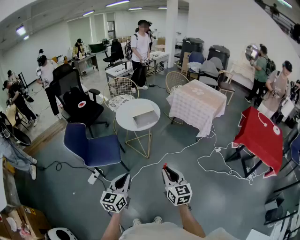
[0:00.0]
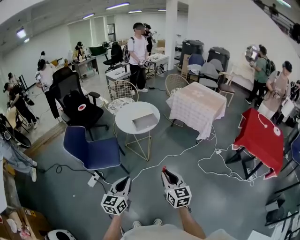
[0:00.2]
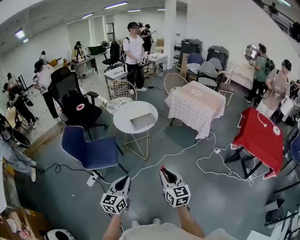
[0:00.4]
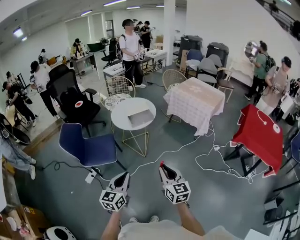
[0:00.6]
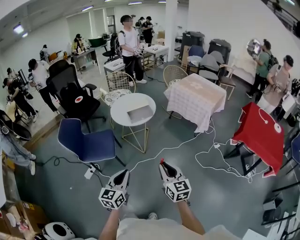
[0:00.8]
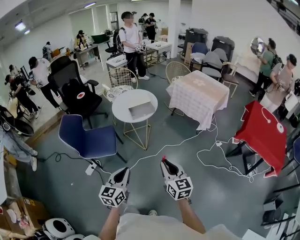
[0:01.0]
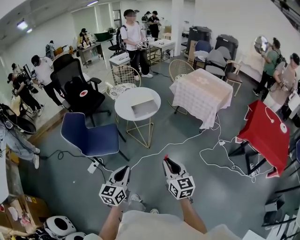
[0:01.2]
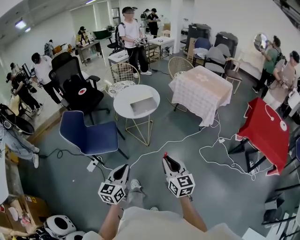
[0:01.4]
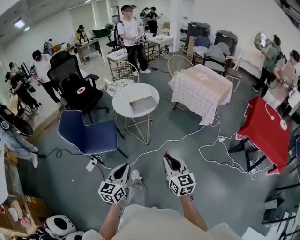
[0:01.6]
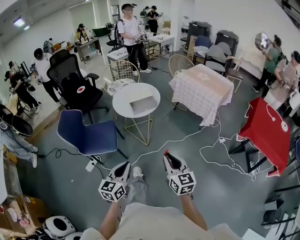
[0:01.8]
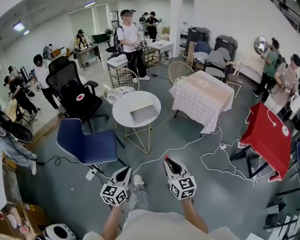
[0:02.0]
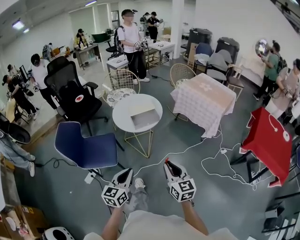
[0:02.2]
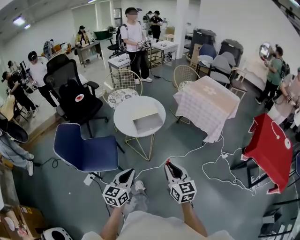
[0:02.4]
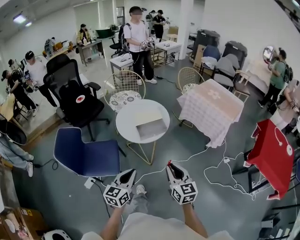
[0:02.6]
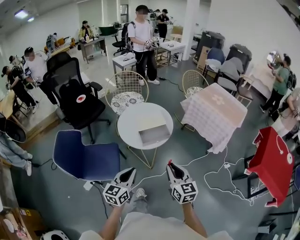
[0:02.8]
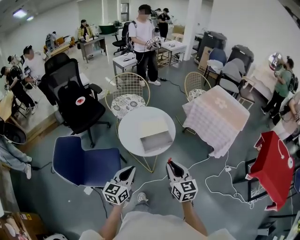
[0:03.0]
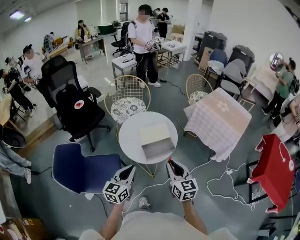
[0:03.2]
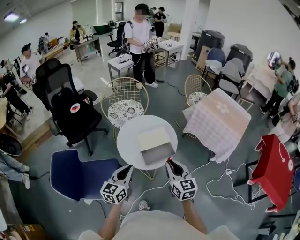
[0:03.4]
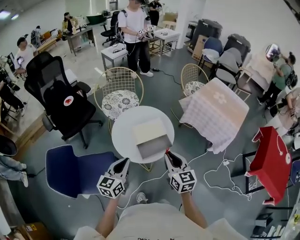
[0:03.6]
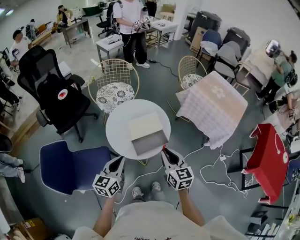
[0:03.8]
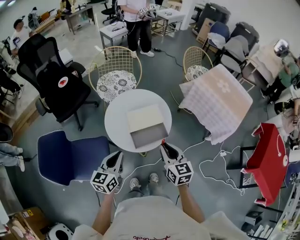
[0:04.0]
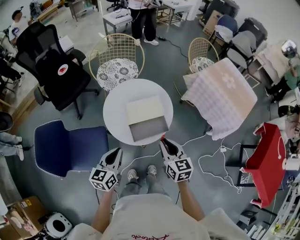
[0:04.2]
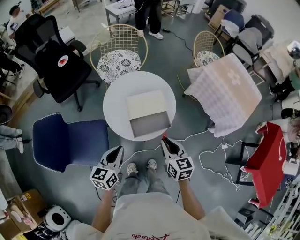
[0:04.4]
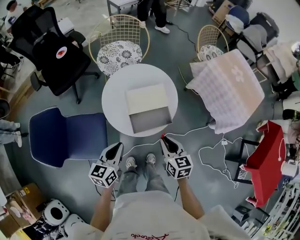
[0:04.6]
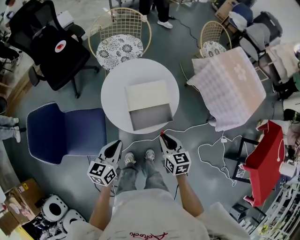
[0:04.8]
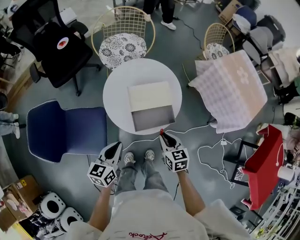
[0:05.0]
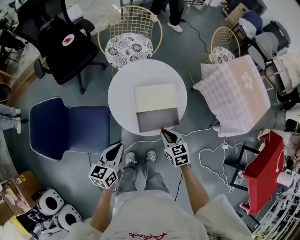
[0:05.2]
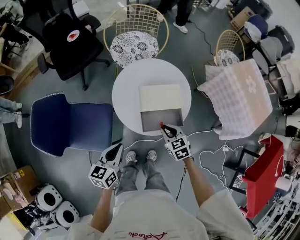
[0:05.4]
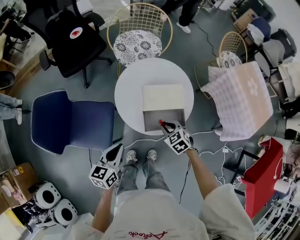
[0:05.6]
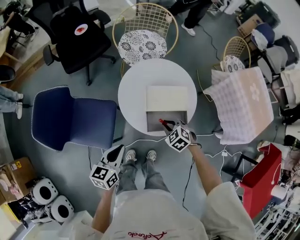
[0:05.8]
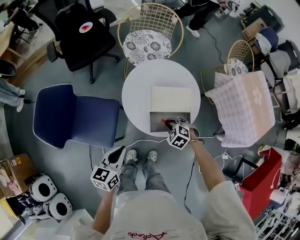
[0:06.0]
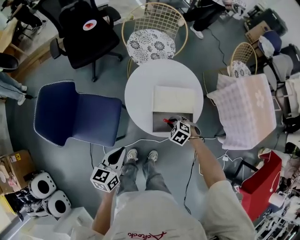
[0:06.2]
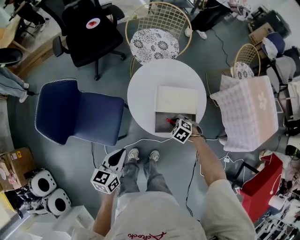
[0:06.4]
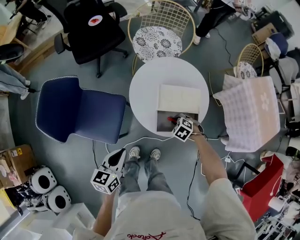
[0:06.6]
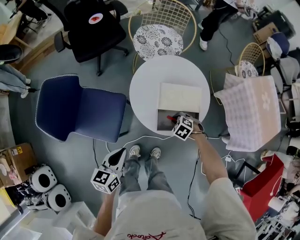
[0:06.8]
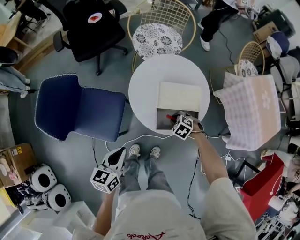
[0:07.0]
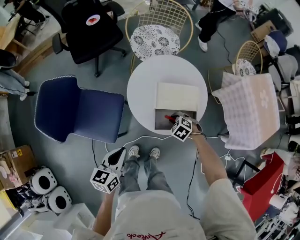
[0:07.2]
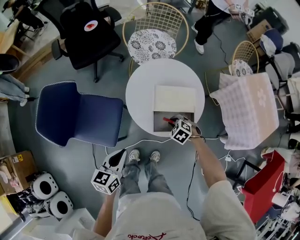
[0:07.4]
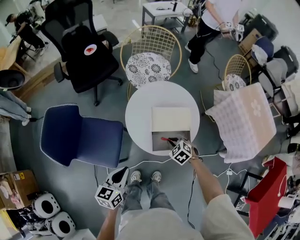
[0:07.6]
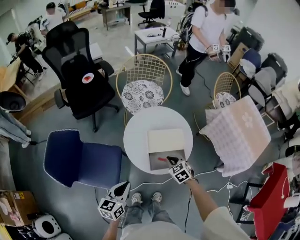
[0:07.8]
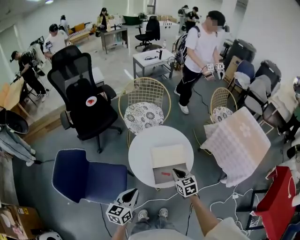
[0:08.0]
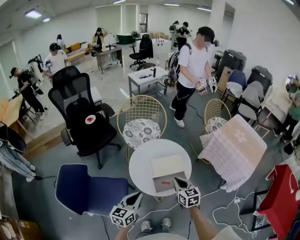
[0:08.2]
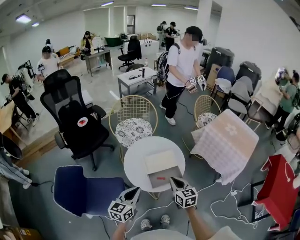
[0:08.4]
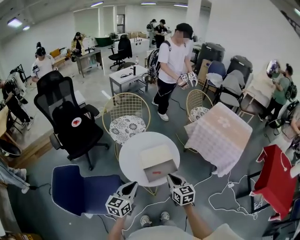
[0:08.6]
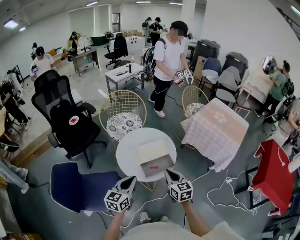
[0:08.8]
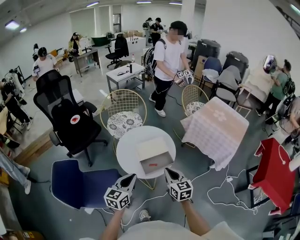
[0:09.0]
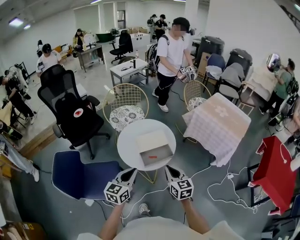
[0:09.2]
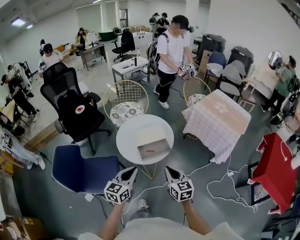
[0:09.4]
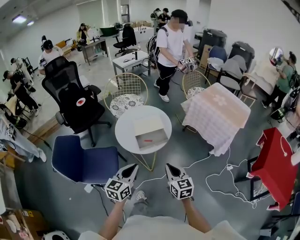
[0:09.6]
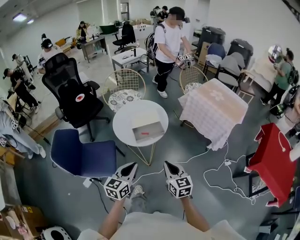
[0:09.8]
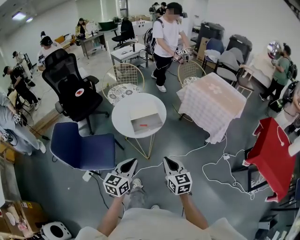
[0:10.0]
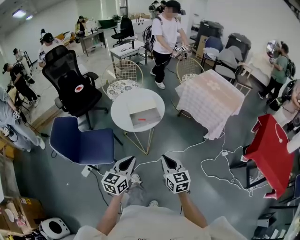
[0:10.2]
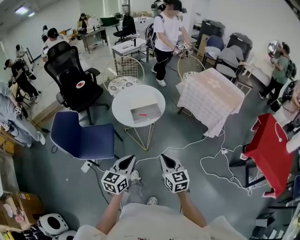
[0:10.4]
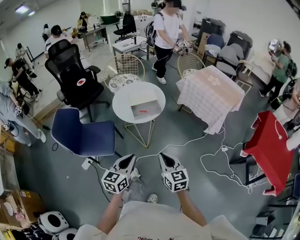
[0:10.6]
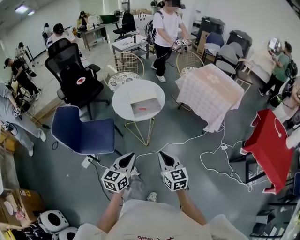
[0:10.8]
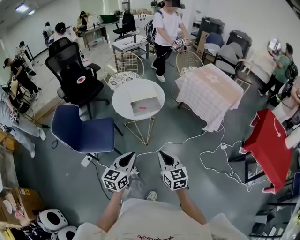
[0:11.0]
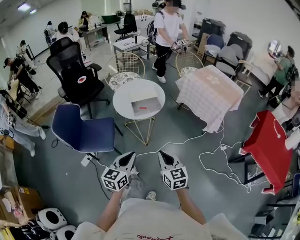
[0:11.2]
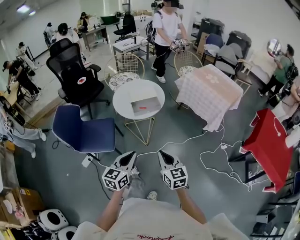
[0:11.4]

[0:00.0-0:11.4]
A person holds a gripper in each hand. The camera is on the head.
0.0 to 1.4 s: The two grippers go approximately 5 cm to the right.
1.4 to 2.8 s: The two grippers go about 30 cm forward.
2.8 to 4.2 s: Both grippers travel together forward, about 20 cm.
4.2 to 5.6 s: The left gripper is displaced downward by about 5 cm. Meanwhile the right gripper heads downward, covering about 20 cm, and tilts its fingers some 30 degrees downward.
5.6 to 7.2 s: The right gripper is displaced downward by approximately 10 cm, and swivels some 30 degrees.
7.2 to 8.6 s: The right gripper goes some 25 cm upward, and tilts its fingers approximately 50 degrees upward; the left gripper is displaced upward by approximately 10 cm, and changes its angle by roughly 30 degrees.
8.6 to 10.0 s: Both grippers travel together backward and to the right, roughly 30 cm.
10.0 to 11.4 s: Both grippers move backward, about 10 cm.

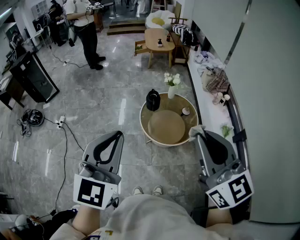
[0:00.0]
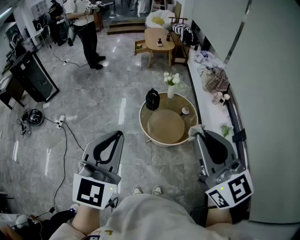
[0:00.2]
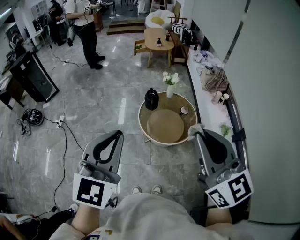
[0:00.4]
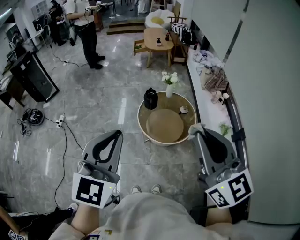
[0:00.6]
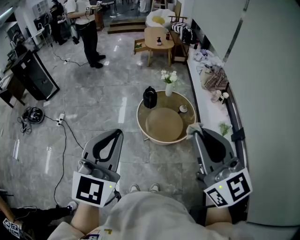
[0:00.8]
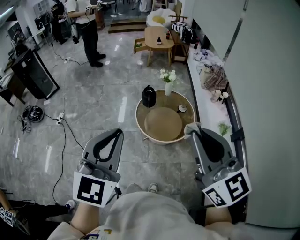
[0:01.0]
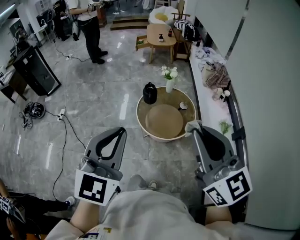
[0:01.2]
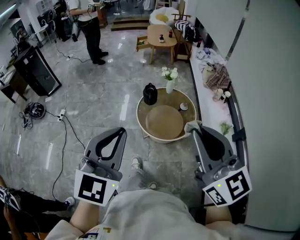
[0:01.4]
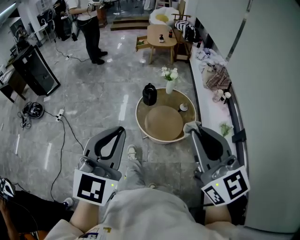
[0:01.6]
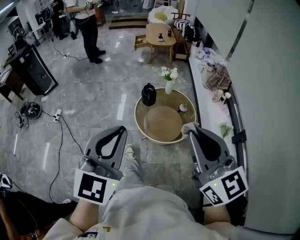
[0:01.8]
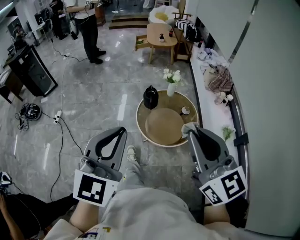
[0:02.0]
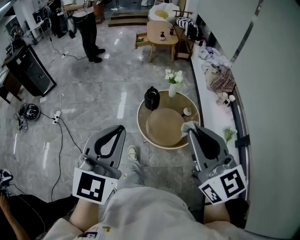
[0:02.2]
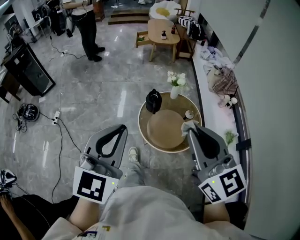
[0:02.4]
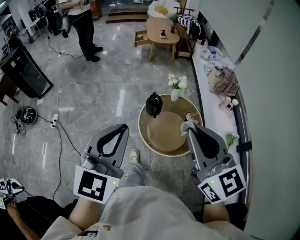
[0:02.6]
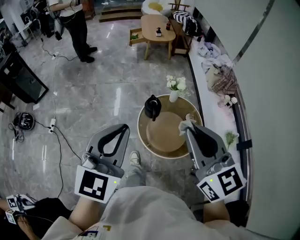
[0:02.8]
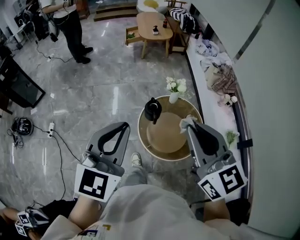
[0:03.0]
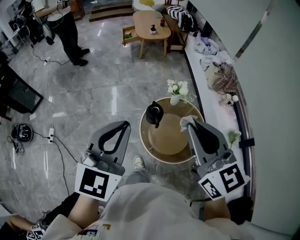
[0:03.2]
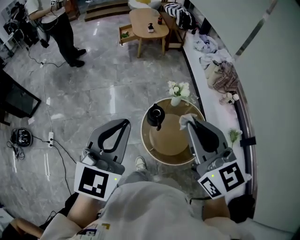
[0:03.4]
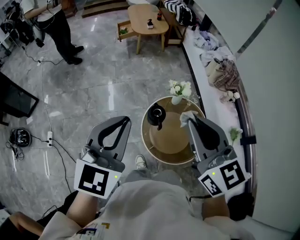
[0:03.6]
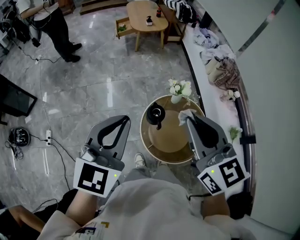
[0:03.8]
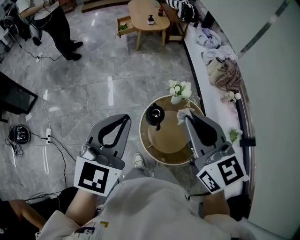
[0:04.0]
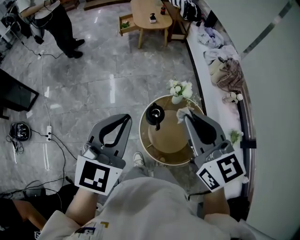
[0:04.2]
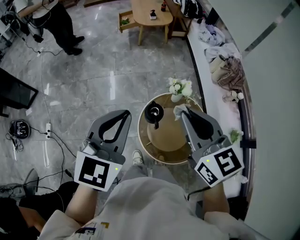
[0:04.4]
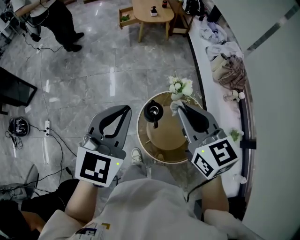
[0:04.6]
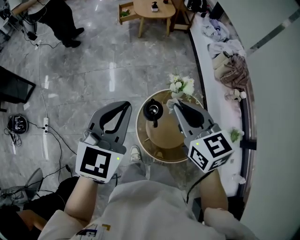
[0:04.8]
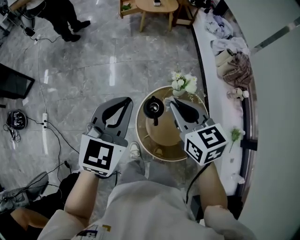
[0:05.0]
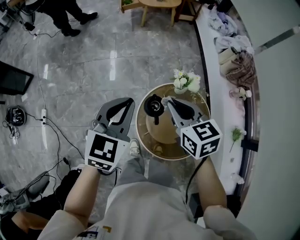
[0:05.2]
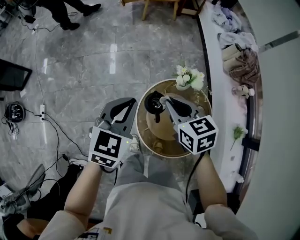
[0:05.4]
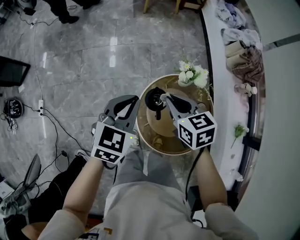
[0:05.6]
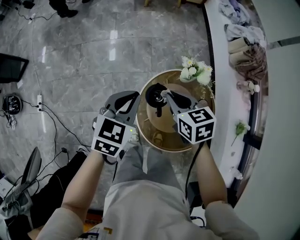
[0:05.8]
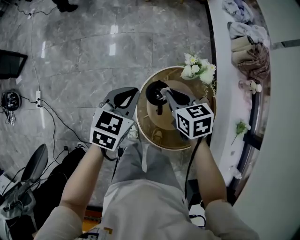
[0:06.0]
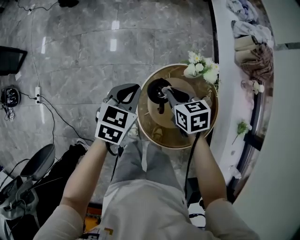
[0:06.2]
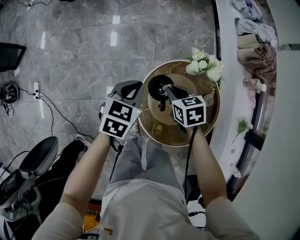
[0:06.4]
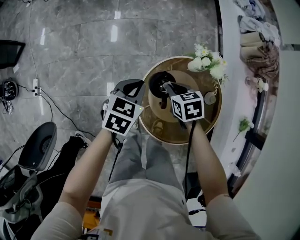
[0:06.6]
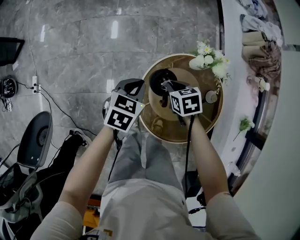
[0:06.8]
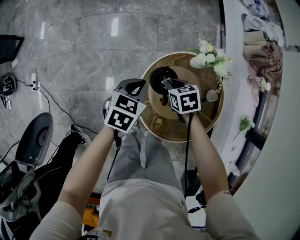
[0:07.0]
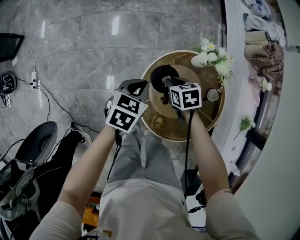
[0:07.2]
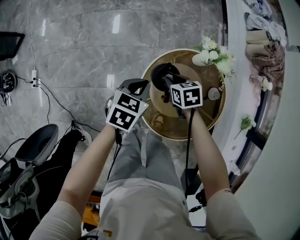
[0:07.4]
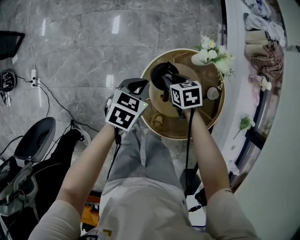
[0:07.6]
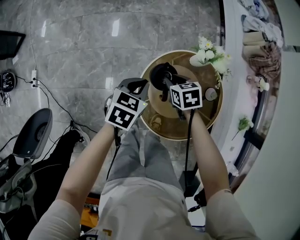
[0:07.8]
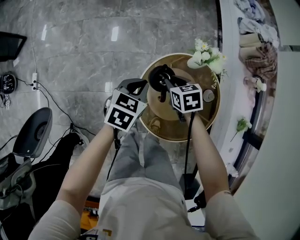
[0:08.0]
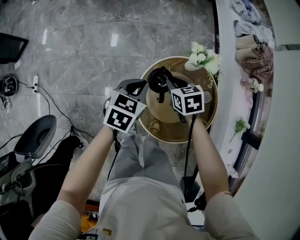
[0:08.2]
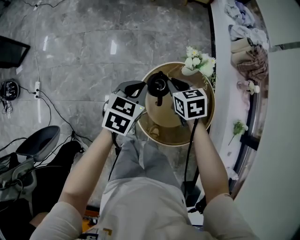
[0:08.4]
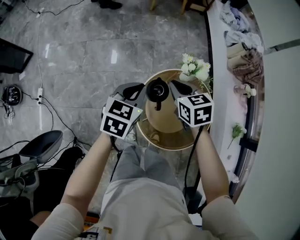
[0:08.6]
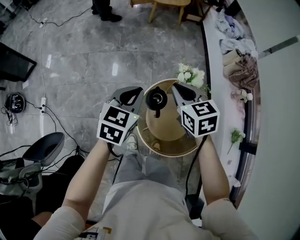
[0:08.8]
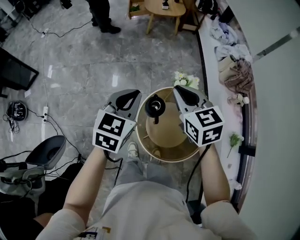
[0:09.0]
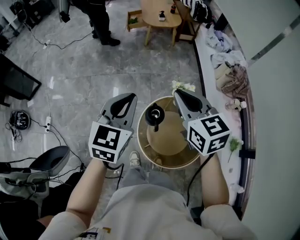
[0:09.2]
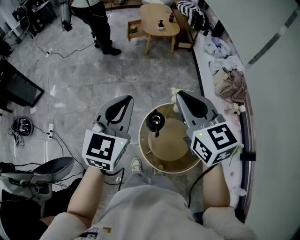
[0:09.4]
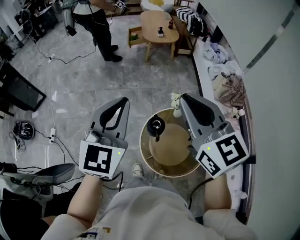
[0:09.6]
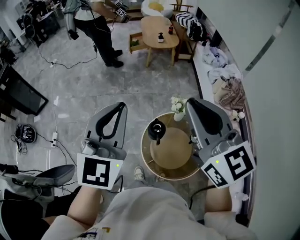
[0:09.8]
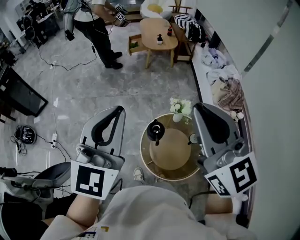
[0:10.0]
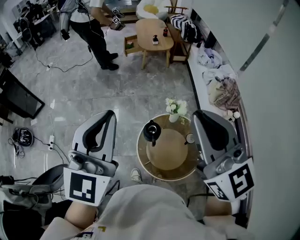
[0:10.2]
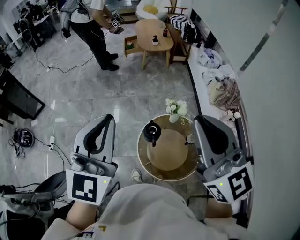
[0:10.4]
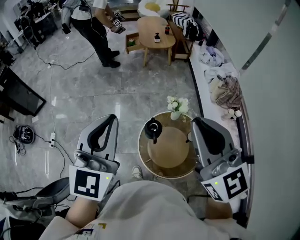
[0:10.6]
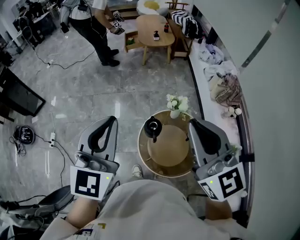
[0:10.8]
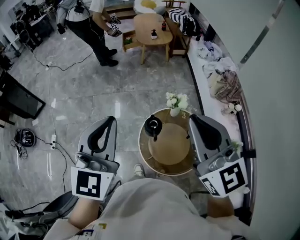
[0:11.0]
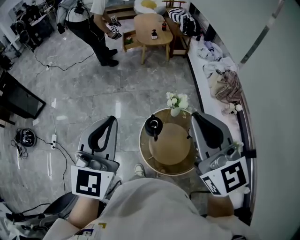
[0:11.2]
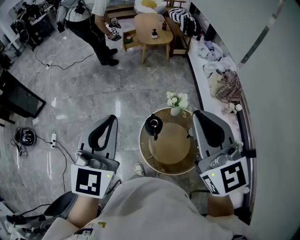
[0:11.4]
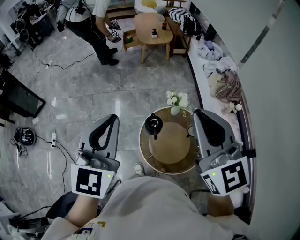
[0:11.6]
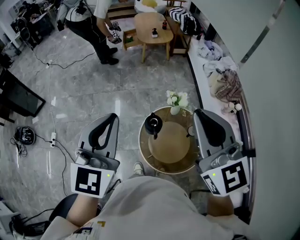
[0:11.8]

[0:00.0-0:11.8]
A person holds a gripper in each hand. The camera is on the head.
0.0 to 1.4 s: Both grippers travel together to the right, roughly 5 cm.
1.4 to 3.0 s: The two grippers go approximately 35 cm forward.
3.0 to 4.4 s: Both grippers move forward, roughly 20 cm.
4.4 to 6.0 s: The right gripper goes roughly 35 cm downward, and tilts its fingers approximately 30 degrees downward; the left gripper travels downward and forward by roughly 35 cm, and changes its angle by approximately 30 degrees.
6.0 to 7.4 s: The two grippers go some 15 cm downward.
7.4 to 8.8 s: Both grippers travel together upward, about 30 cm. The right gripper changes its angle by approximately 30 degrees; the left gripper rotates about 20 degrees.
8.8 to 10.4 s: The left gripper travels upward by some 35 cm, and tilts its fingers some 30 degrees upward, while the right gripper moves upward and backward, roughly 40 cm, and points its fingers roughly 40 degrees further upward.
10.4 to 11.8 s: The grippers stay close to where they were, moving slightly.

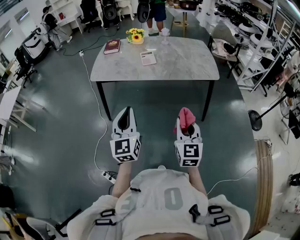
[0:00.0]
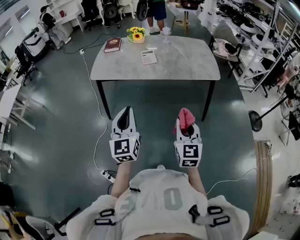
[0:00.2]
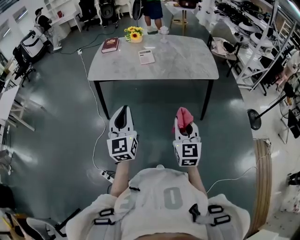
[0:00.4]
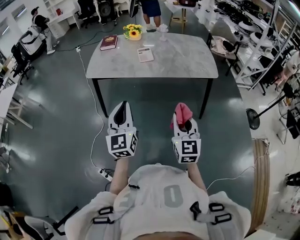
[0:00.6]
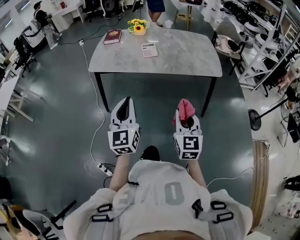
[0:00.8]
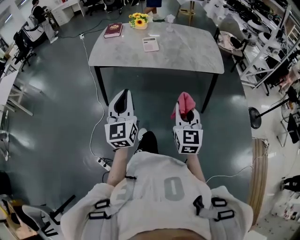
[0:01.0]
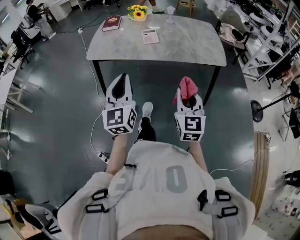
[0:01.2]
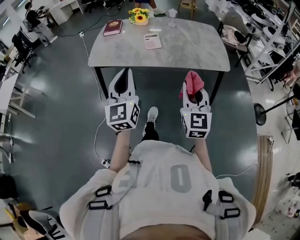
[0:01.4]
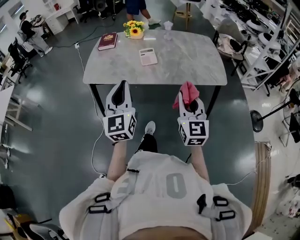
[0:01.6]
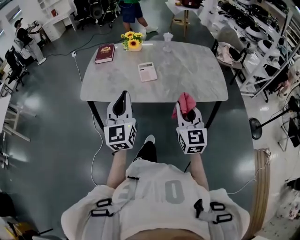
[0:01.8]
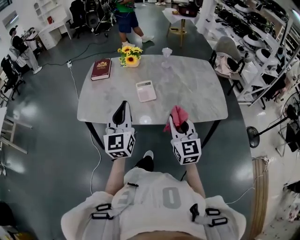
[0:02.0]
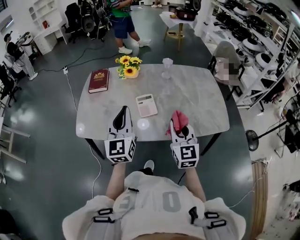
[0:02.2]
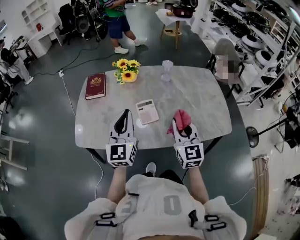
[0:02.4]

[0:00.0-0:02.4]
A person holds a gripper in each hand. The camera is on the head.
0.0 to 1.2 s: The grippers both shift forward by approximately 10 cm.
1.2 to 2.4 s: Both grippers are carried forward, roughly 50 cm.
